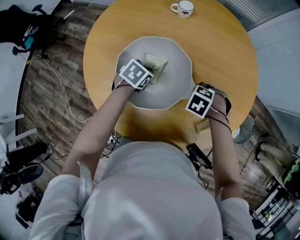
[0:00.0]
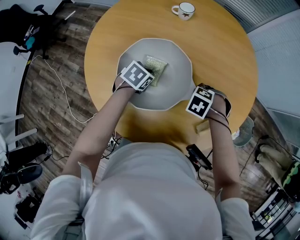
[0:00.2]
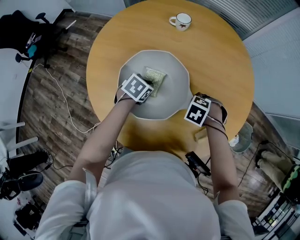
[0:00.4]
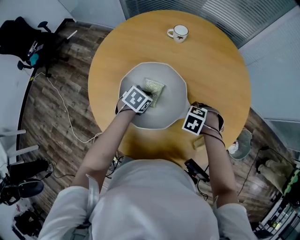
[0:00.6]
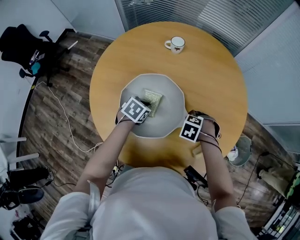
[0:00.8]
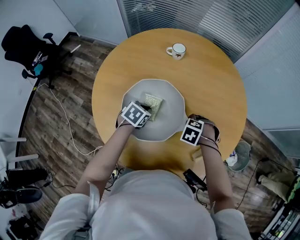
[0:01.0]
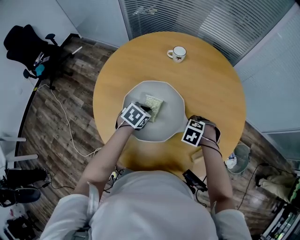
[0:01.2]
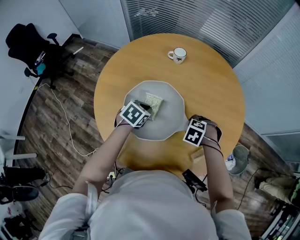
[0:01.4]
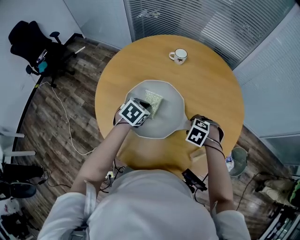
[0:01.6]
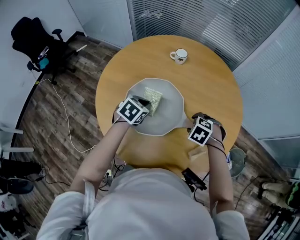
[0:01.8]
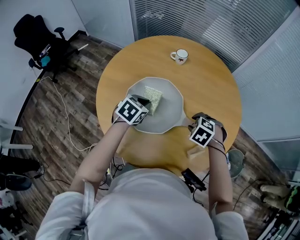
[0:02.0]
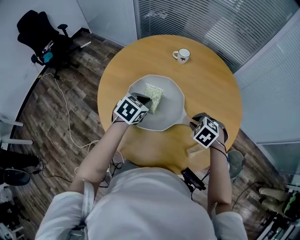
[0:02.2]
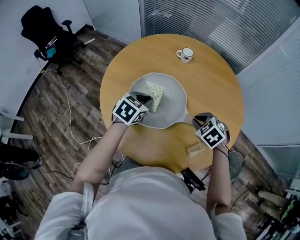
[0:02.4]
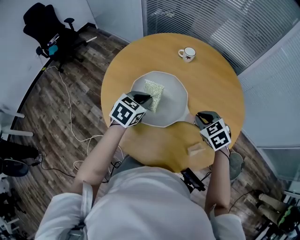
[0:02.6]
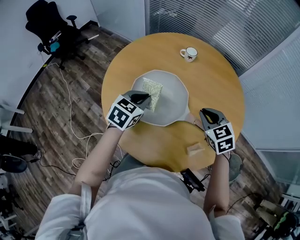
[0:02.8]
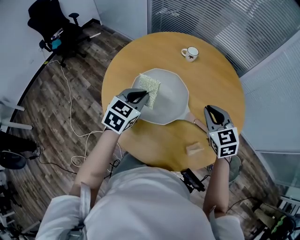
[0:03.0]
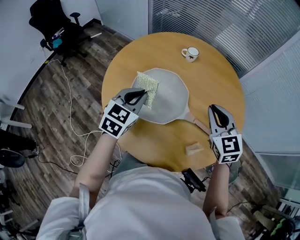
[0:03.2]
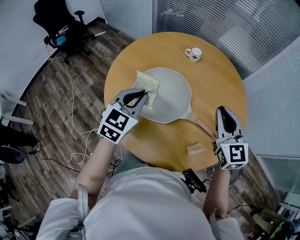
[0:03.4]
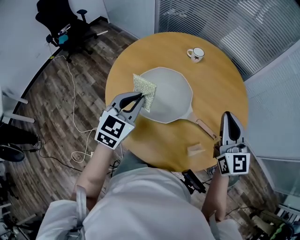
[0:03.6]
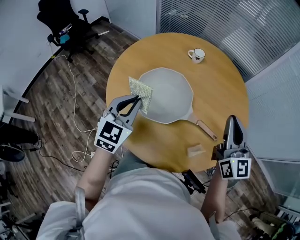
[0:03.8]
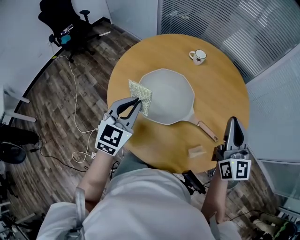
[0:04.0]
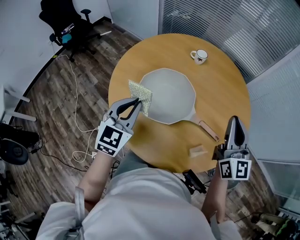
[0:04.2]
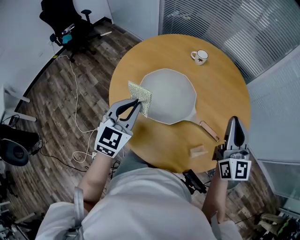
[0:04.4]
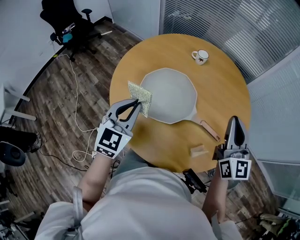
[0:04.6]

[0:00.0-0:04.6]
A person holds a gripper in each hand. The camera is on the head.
0:00.0 to 0:01.6: The left gripper goes approximately 10 cm upward; the right gripper goes roughly 5 cm upward.
0:01.6 to 0:03.0: Both grippers move upward, some 15 cm. The left gripper changes its angle by some 30 degrees. The right gripper tips its fingers upward by roughly 50 degrees, and closes.
0:03.0 to 0:04.6: The left gripper moves backward and upward, some 10 cm, and rotates roughly 20 degrees, while the right gripper goes about 10 cm upward, and tips its fingers upward by some 30 degrees.

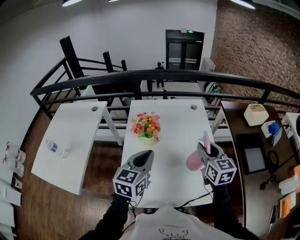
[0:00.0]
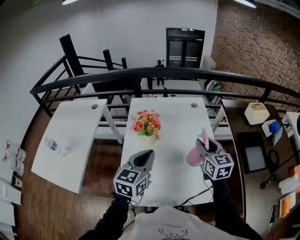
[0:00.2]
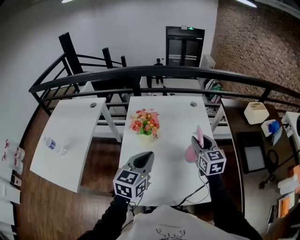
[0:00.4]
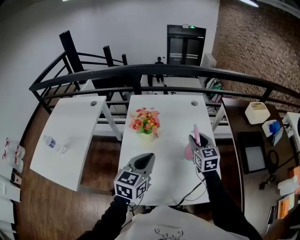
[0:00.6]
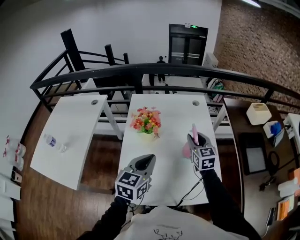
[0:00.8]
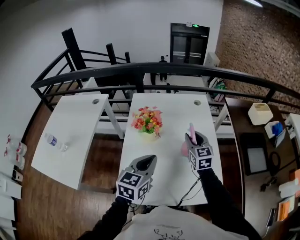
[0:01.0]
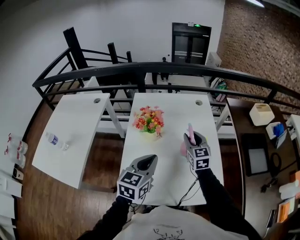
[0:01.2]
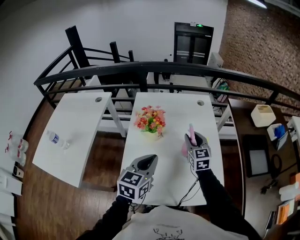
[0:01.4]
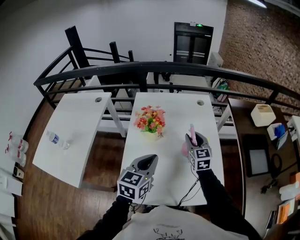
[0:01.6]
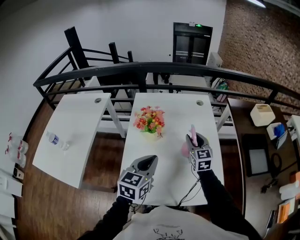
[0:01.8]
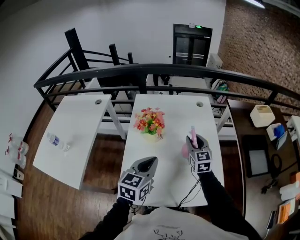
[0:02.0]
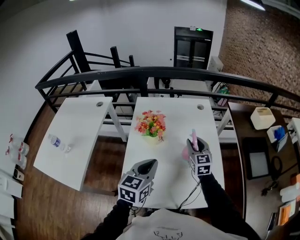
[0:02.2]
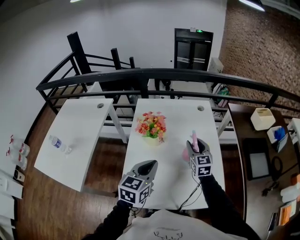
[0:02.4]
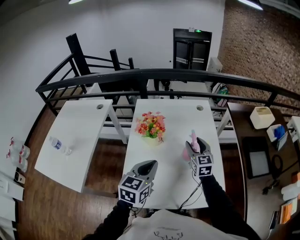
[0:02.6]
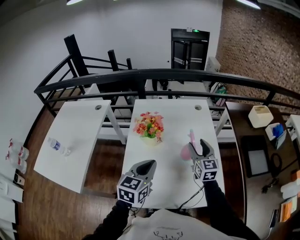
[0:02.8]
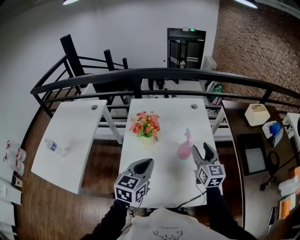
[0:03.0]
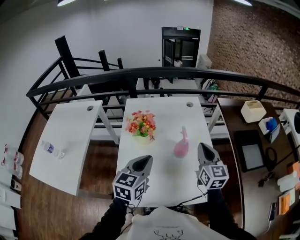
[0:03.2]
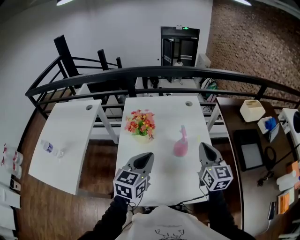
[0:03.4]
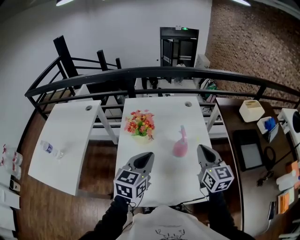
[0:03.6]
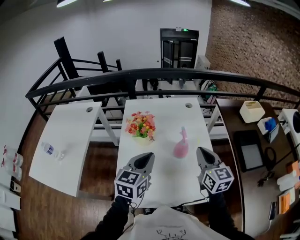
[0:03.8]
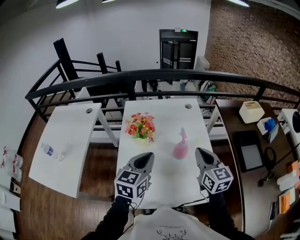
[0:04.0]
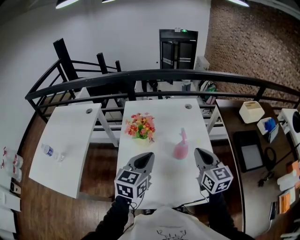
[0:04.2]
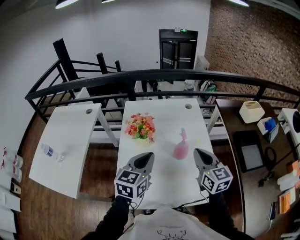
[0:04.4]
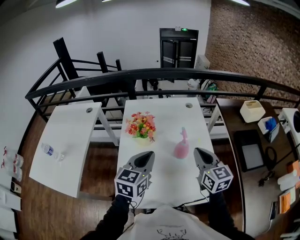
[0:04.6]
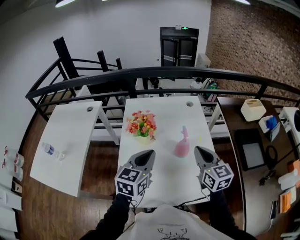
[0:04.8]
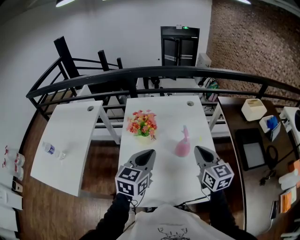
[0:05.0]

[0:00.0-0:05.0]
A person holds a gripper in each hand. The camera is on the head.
0:00.0 to 0:01.6: The right gripper moves downward, forward and to the left, approximately 15 cm.
0:01.6 to 0:03.4: The right gripper travels backward, upward and to the right by about 15 cm, and closes up.
0:03.4 to 0:05.0: The grippers move only a little.

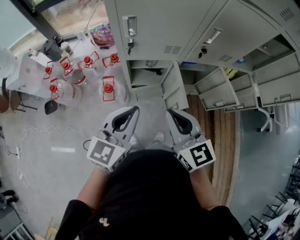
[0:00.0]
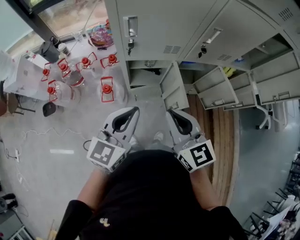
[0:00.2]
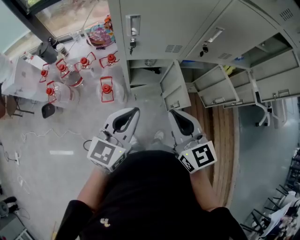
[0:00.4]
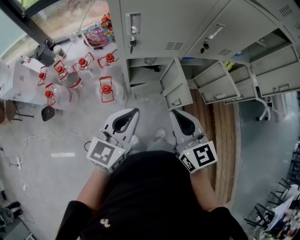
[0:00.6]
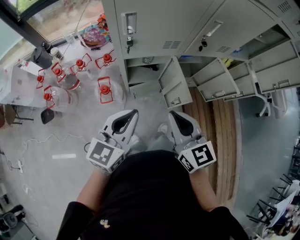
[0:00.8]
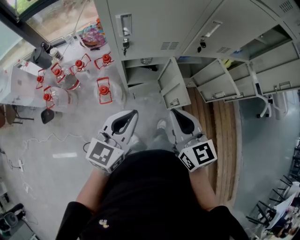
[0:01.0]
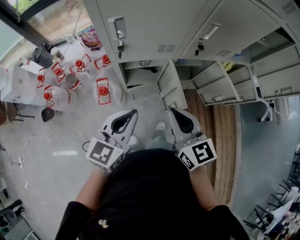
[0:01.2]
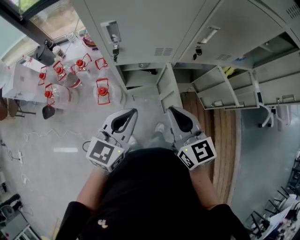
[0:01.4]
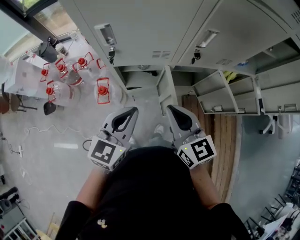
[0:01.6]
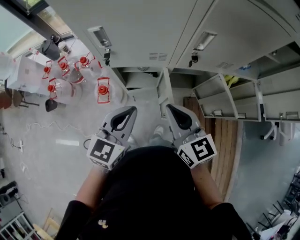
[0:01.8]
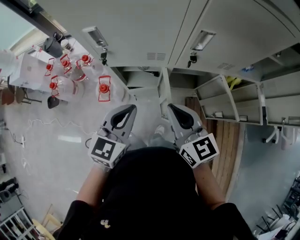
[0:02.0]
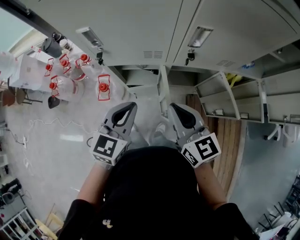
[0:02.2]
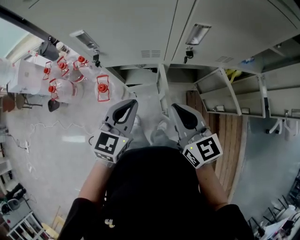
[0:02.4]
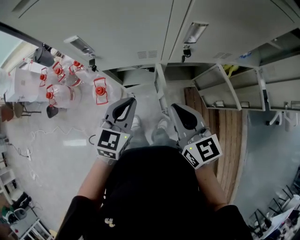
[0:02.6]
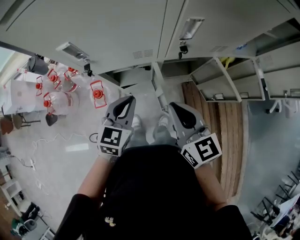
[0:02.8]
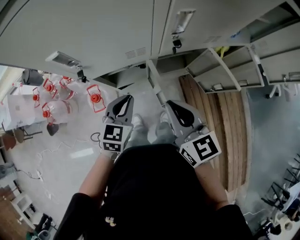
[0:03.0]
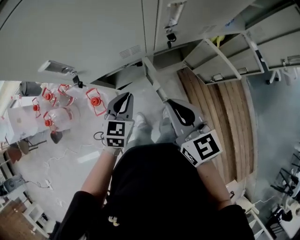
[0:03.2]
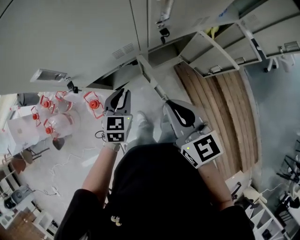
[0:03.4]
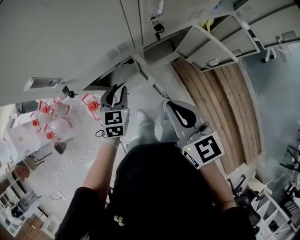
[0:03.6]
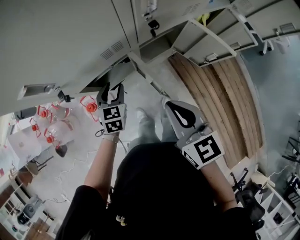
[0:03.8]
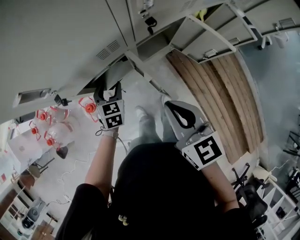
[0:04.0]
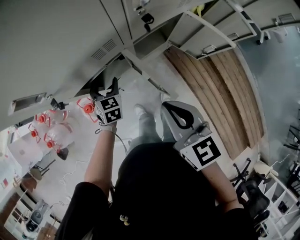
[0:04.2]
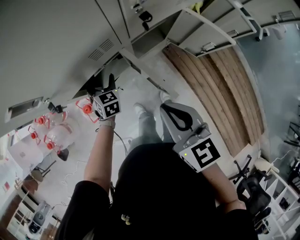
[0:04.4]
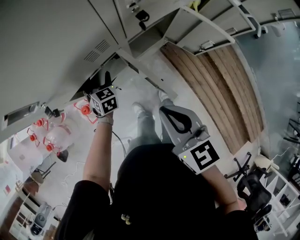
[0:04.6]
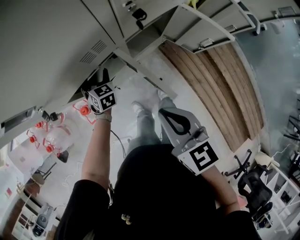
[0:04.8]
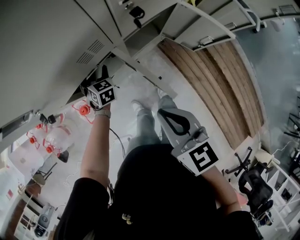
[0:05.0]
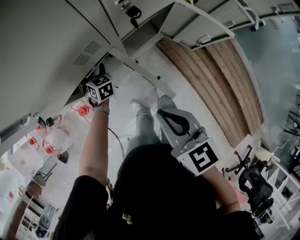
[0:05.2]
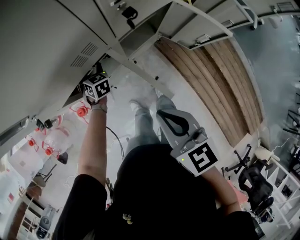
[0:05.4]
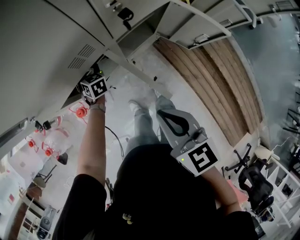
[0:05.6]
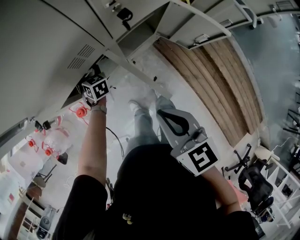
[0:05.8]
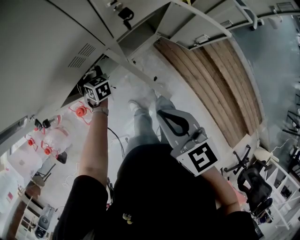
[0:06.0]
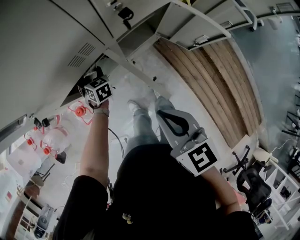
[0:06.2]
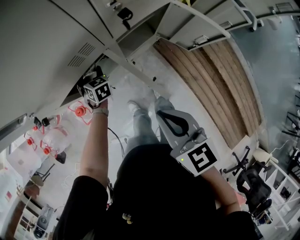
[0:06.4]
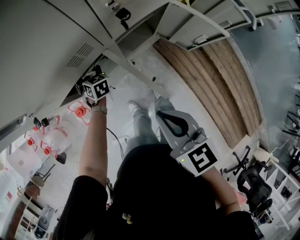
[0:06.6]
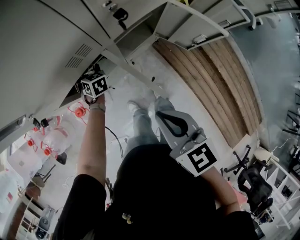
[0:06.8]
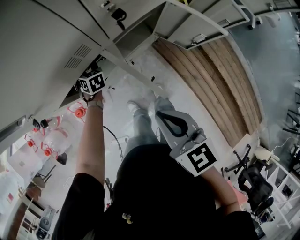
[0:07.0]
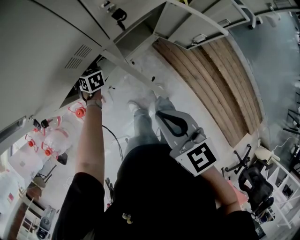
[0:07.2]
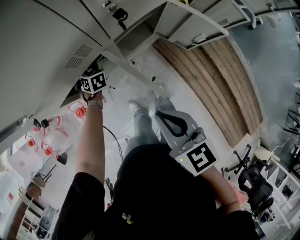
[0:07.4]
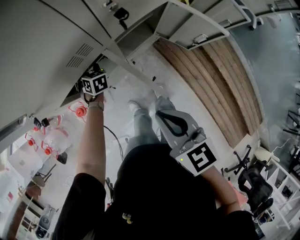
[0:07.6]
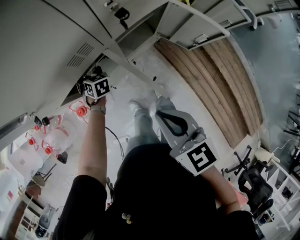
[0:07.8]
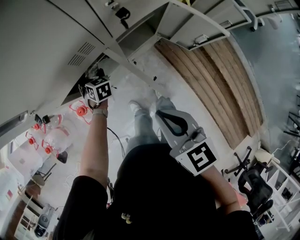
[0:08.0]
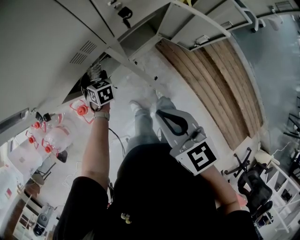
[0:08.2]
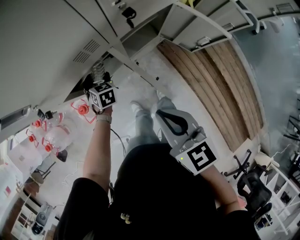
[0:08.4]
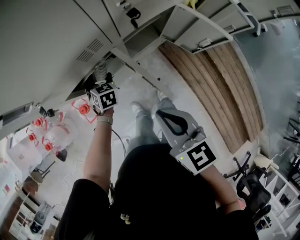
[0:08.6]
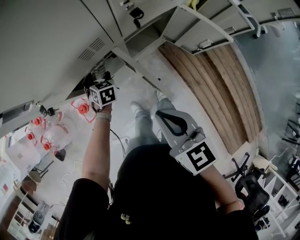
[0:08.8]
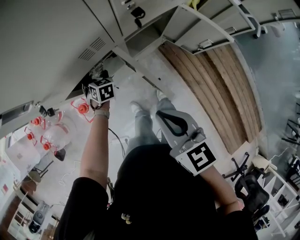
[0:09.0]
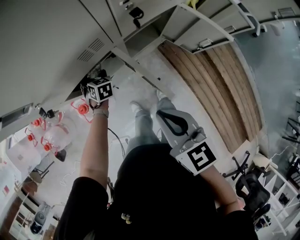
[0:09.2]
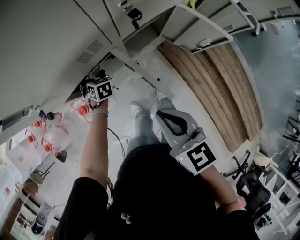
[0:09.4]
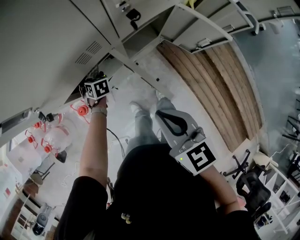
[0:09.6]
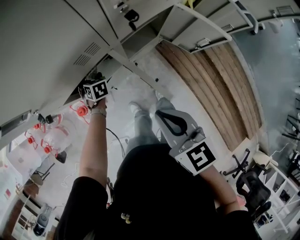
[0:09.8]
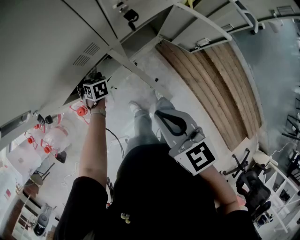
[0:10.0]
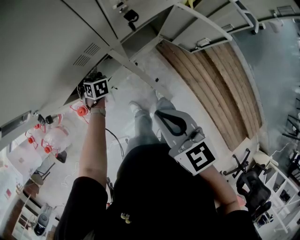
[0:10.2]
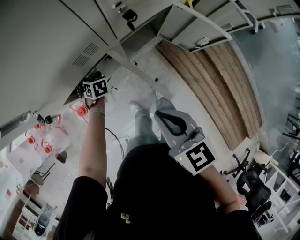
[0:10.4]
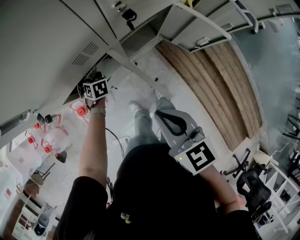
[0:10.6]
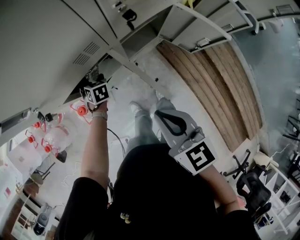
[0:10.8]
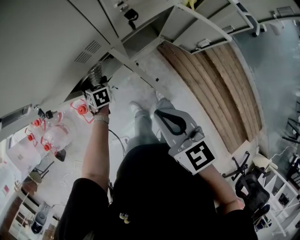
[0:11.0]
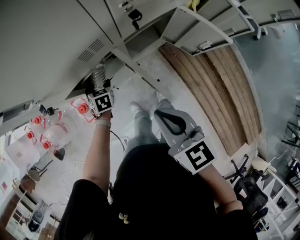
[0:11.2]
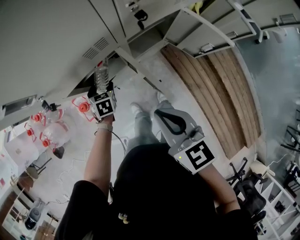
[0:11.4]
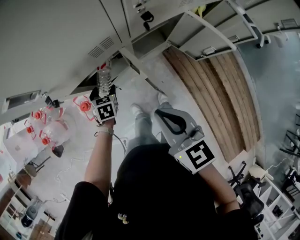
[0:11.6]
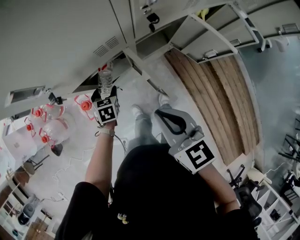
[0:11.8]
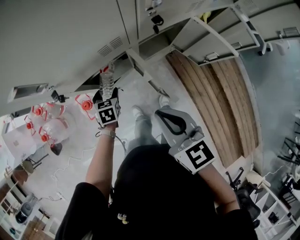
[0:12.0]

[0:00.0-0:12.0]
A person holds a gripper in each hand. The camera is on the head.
0:00.0 to 0:01.6: The left gripper moves forward, roughly 5 cm; the right gripper moves forward and to the right, approximately 10 cm.
0:01.6 to 0:03.0: The left gripper shifts about 15 cm downward and forward, while the right gripper changes place by roughly 5 cm.
0:03.0 to 0:04.4: The left gripper is displaced downward and forward by some 20 cm, and opens, while the right gripper goes approximately 5 cm downward.
0:04.4 to 0:06.0: The left gripper shifts approximately 10 cm downward and forward.
0:06.0 to 0:07.6: The grippers stay close to where they were, moving slightly.
0:09.0 to 0:10.4: The grippers move only a little.
0:10.4 to 0:12.0: The left gripper goes about 10 cm backward and upward.

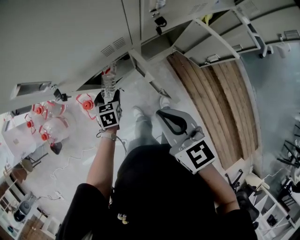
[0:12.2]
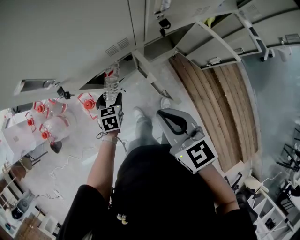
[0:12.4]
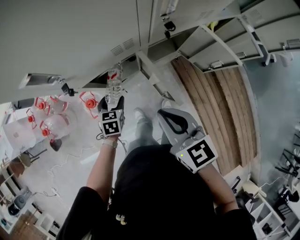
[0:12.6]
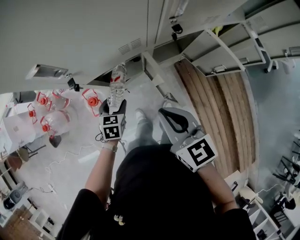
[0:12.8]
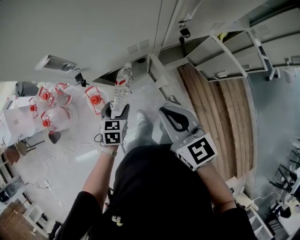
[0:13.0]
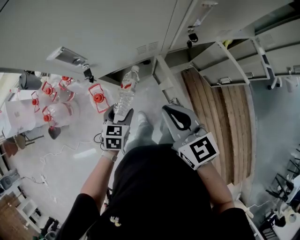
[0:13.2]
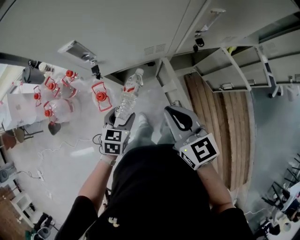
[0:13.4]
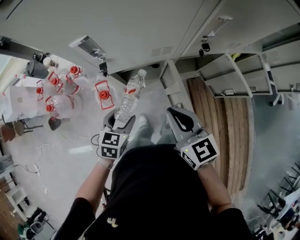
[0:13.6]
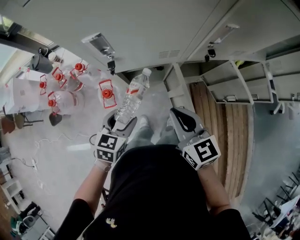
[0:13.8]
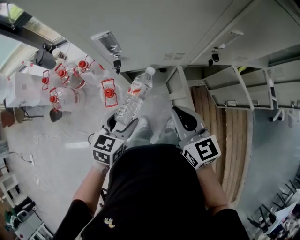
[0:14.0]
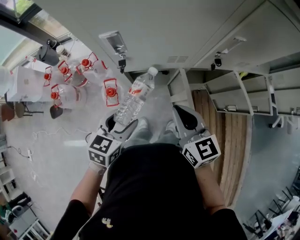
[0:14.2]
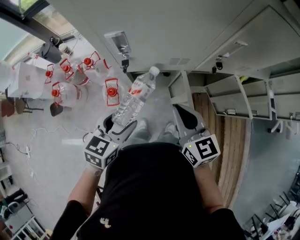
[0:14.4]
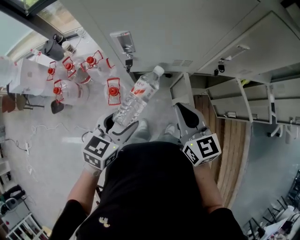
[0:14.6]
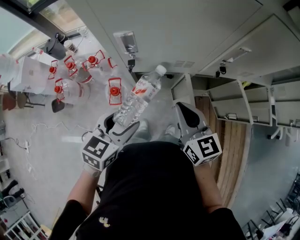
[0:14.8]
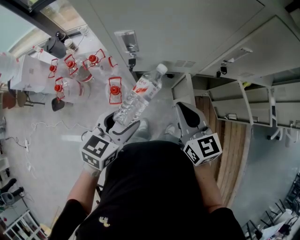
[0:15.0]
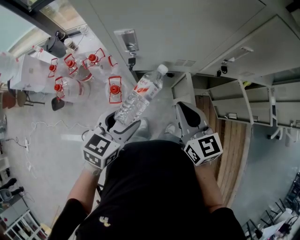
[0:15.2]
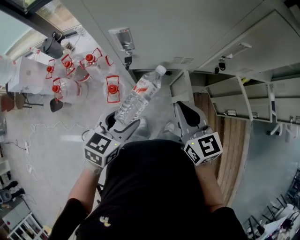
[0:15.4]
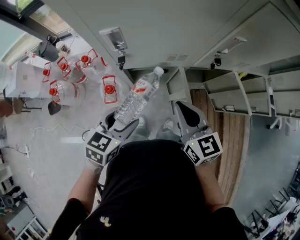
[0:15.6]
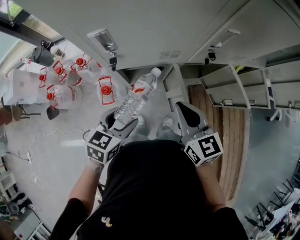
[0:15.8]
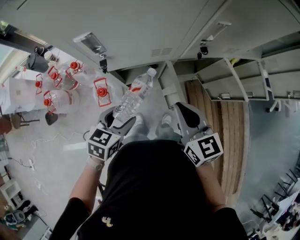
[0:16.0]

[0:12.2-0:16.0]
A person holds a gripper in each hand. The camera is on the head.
0:12.2 to 0:13.4: The left gripper travels upward and backward by roughly 15 cm.
0:13.4 to 0:14.8: The left gripper goes about 15 cm upward.
0:14.8 to 0:16.0: The right gripper goes approximately 5 cm to the right. The left gripper moves downward, roughly 10 cm.
